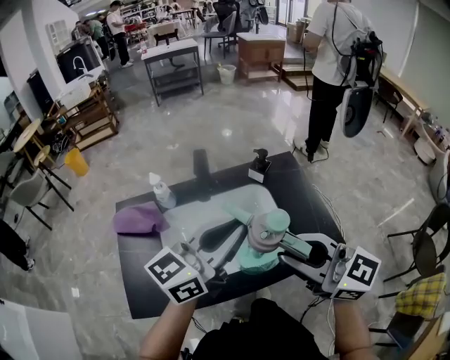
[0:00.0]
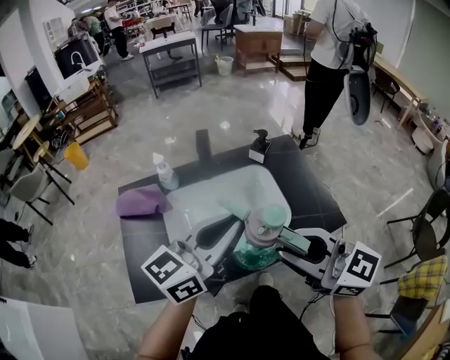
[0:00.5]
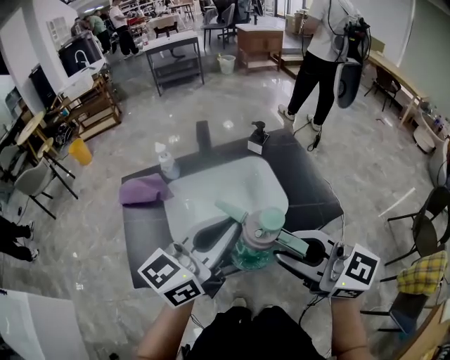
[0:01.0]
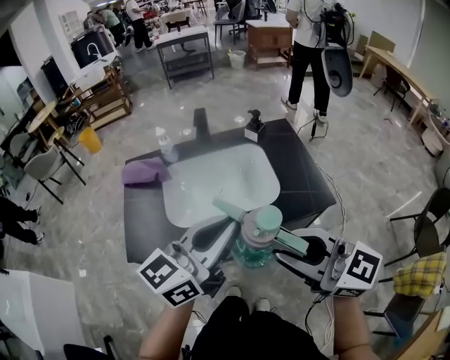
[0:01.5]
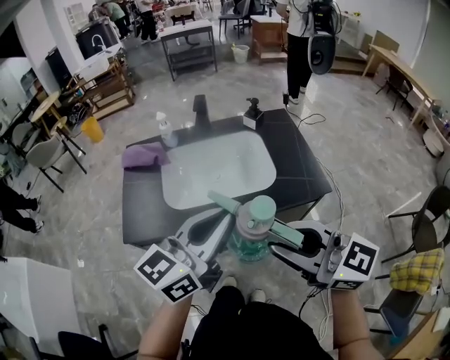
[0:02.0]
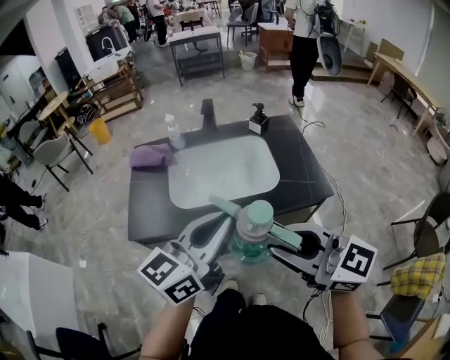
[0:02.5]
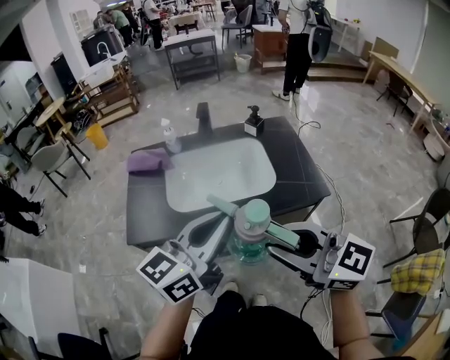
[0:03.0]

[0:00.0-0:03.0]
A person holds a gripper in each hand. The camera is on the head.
0:00.0 to 0:01.5: The two grippers go approximately 20 cm backward.
0:01.5 to 0:03.0: Both grippers move backward, some 5 cm.

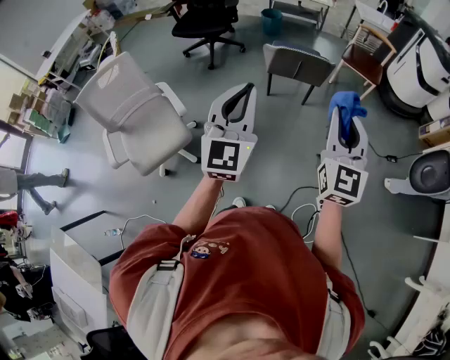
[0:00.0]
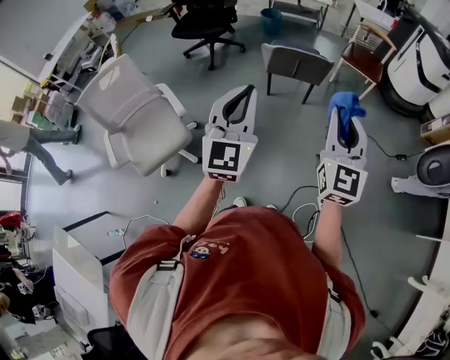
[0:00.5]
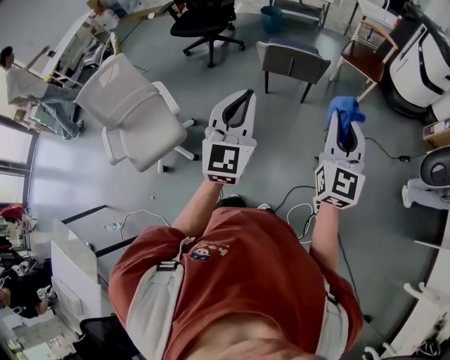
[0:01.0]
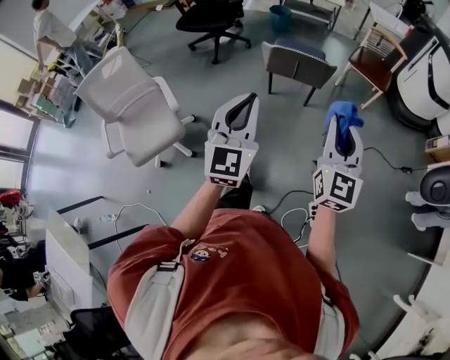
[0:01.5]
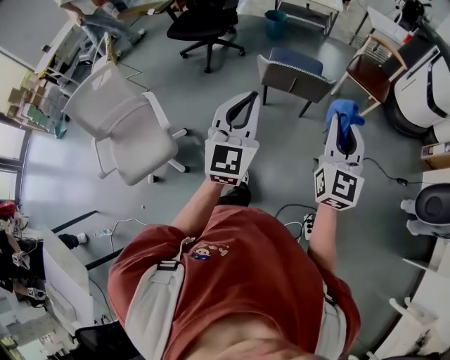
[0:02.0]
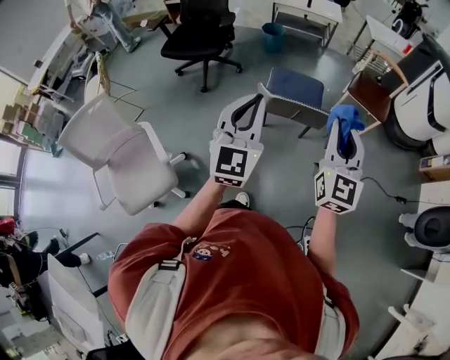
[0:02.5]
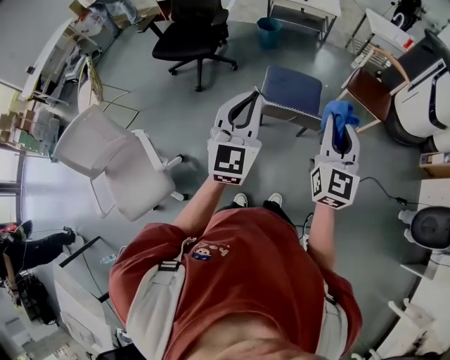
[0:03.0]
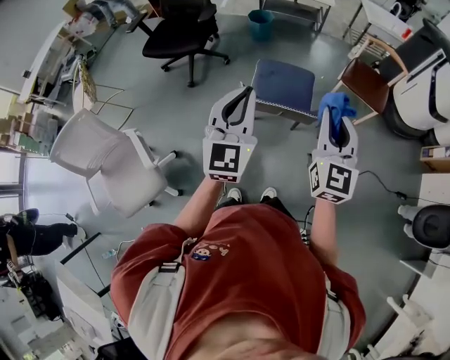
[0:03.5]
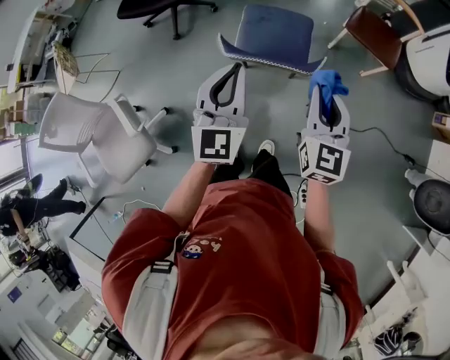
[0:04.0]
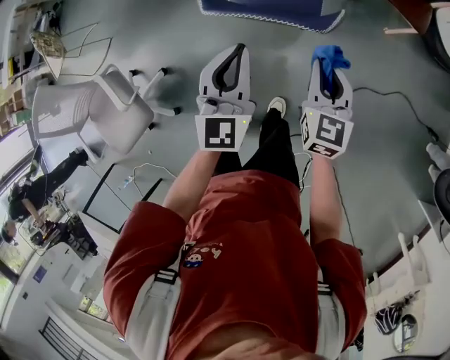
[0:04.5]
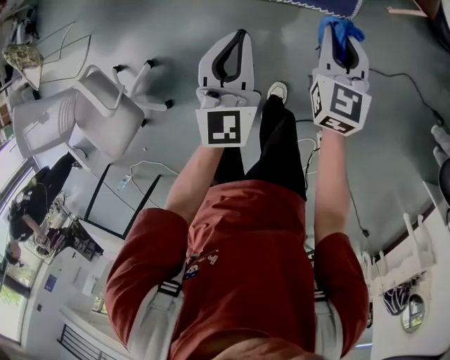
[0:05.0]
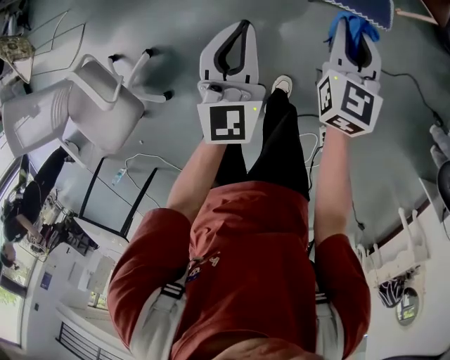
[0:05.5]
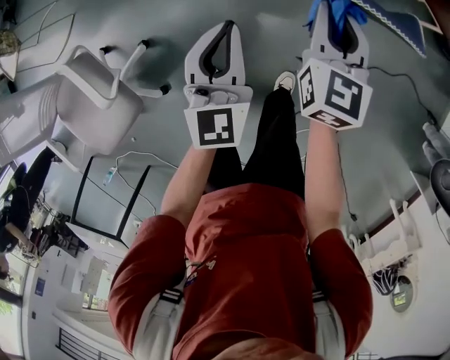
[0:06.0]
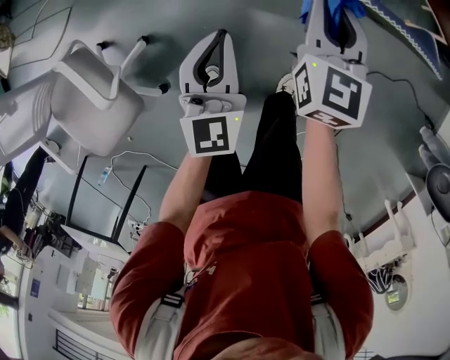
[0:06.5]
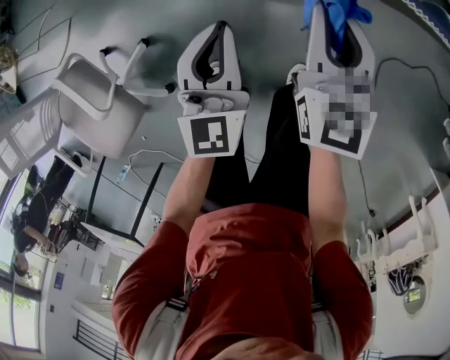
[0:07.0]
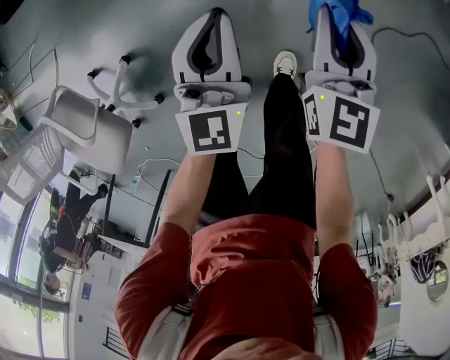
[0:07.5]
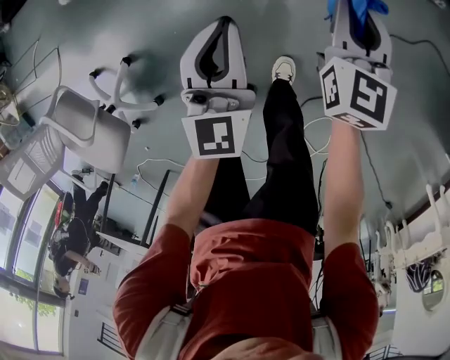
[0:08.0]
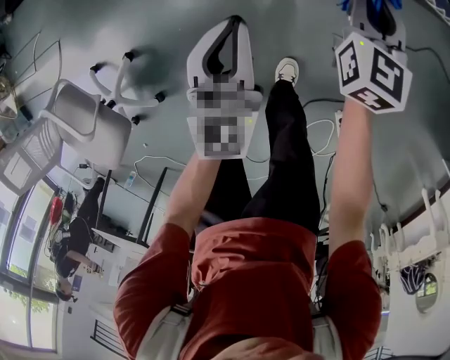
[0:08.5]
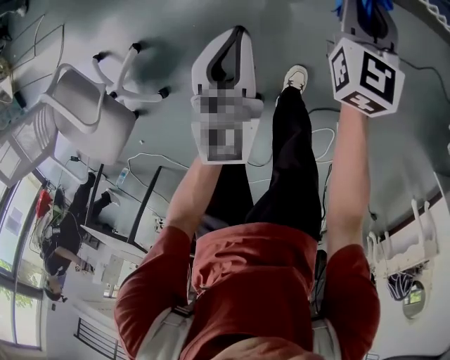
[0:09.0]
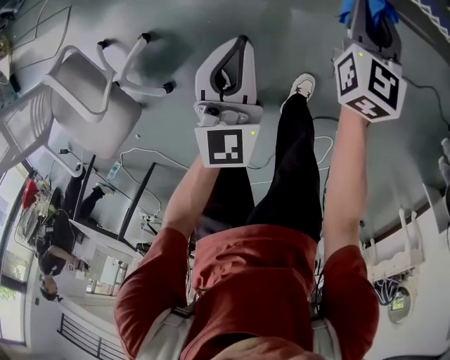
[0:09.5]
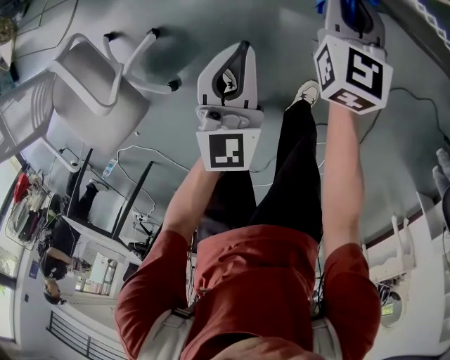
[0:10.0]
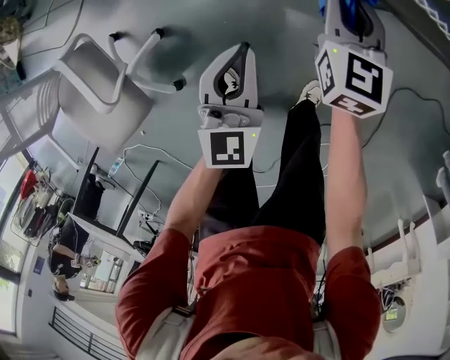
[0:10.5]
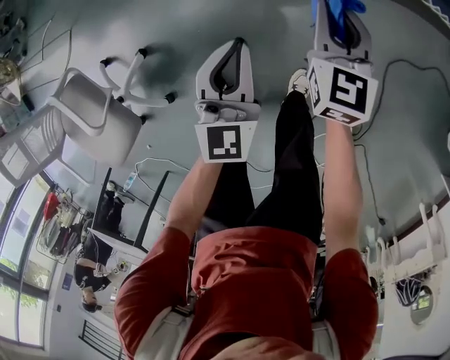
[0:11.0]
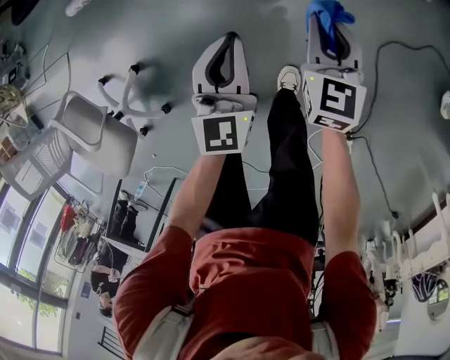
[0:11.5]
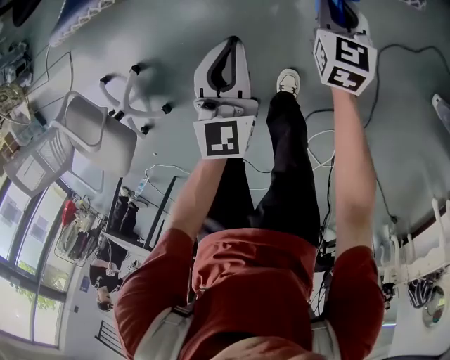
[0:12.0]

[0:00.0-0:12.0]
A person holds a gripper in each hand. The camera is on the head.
0:00.0 to 0:02.0: The two grippers go some 15 cm forward.
0:02.0 to 0:04.0: The left gripper shifts roughly 30 cm forward; the right gripper goes some 30 cm forward and downward.
0:04.0 to 0:06.0: Both grippers travel together downward and to the left, roughly 30 cm.
0:06.0 to 0:08.0: Both grippers travel together to the right and downward, about 25 cm.
0:08.0 to 0:10.0: The two grippers go approximately 25 cm to the left.
0:10.0 to 0:12.0: The right gripper heads to the right and downward, covering roughly 35 cm. The left gripper goes roughly 25 cm to the right.

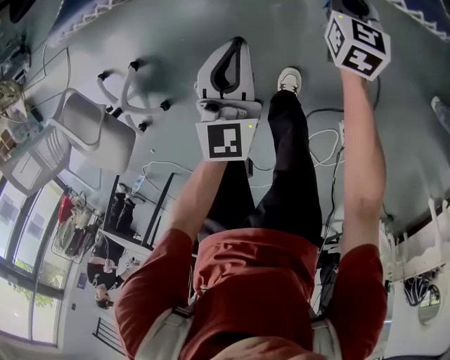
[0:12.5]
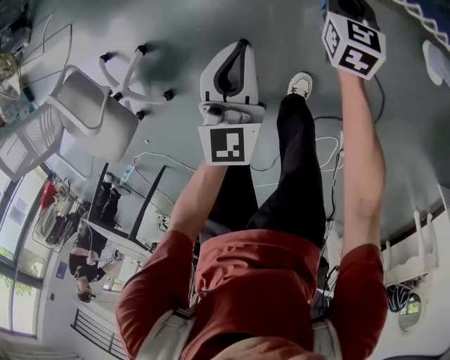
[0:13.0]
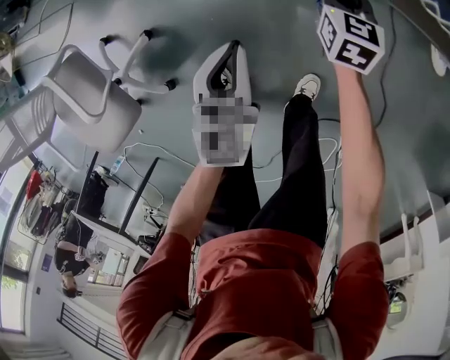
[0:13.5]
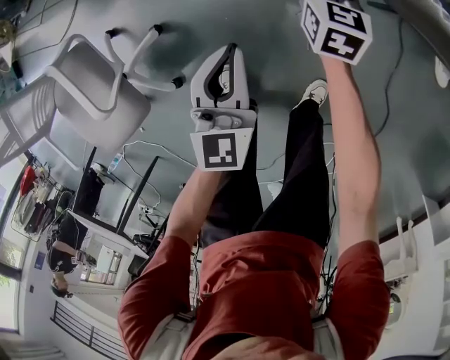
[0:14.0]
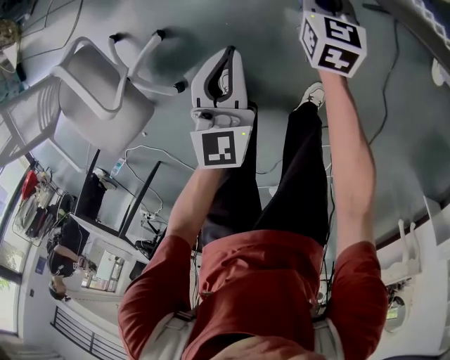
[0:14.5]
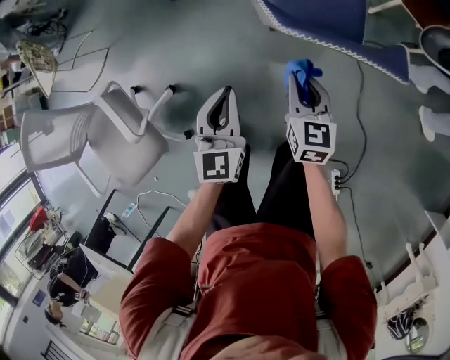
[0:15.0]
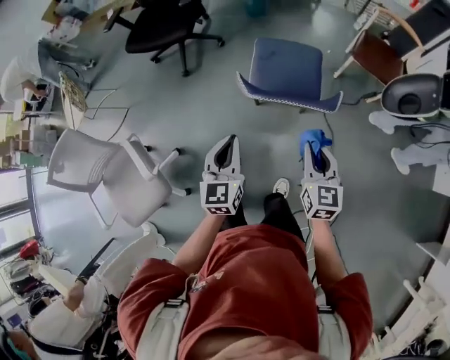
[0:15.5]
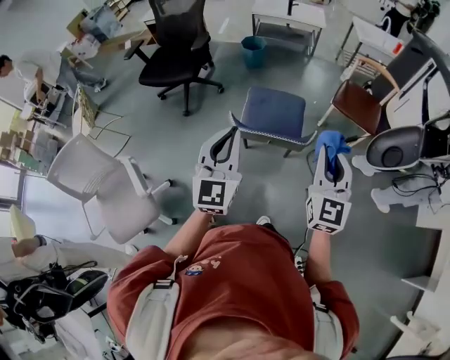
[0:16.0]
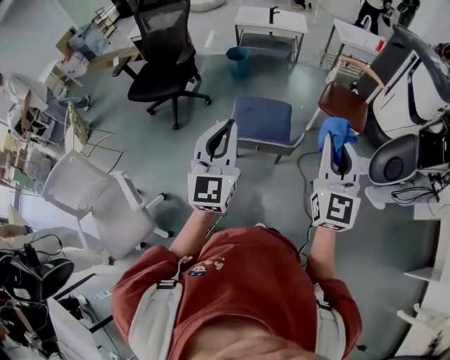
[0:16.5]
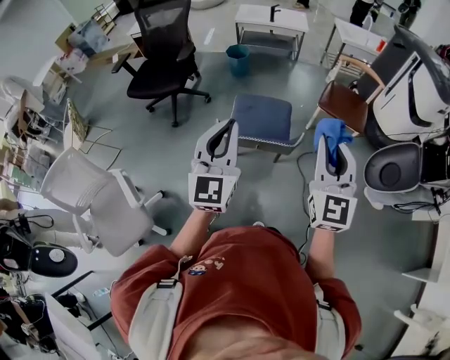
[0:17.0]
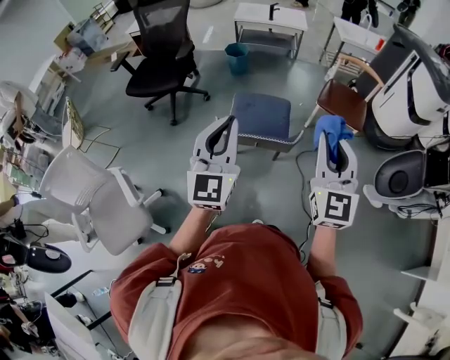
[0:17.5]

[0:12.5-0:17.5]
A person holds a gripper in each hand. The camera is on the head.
0:12.5 to 0:15.0: The grippers both shift to the left and upward by roughly 30 cm.
0:15.0 to 0:17.5: The grippers both shift upward and to the right by some 50 cm. The left gripper swivels about 30 degrees; the right gripper tilts its fingers some 30 degrees upward.

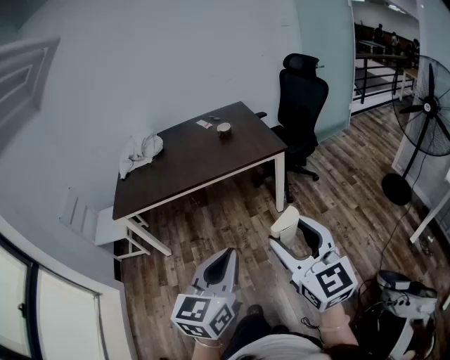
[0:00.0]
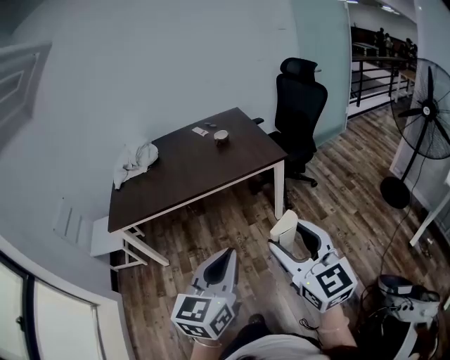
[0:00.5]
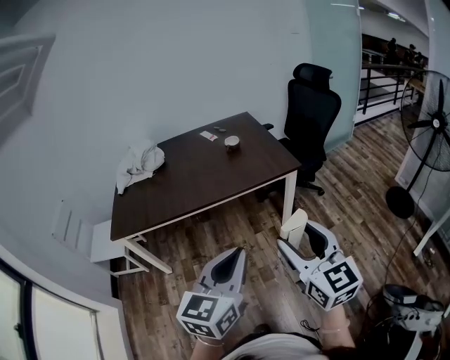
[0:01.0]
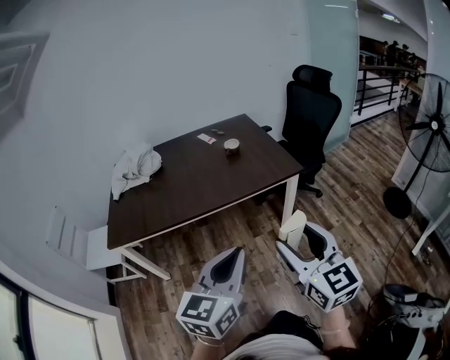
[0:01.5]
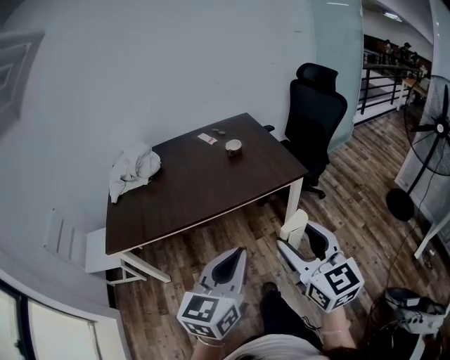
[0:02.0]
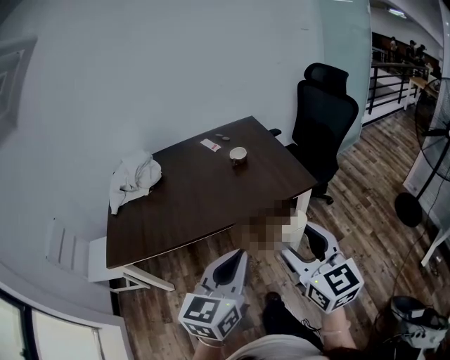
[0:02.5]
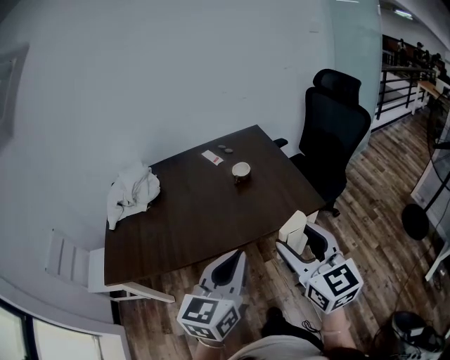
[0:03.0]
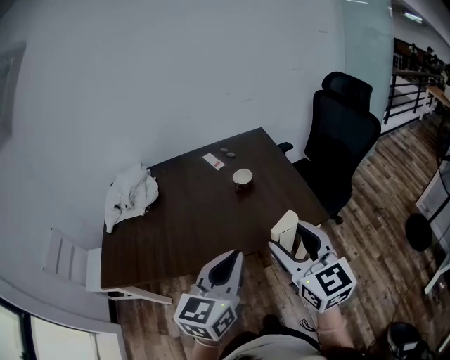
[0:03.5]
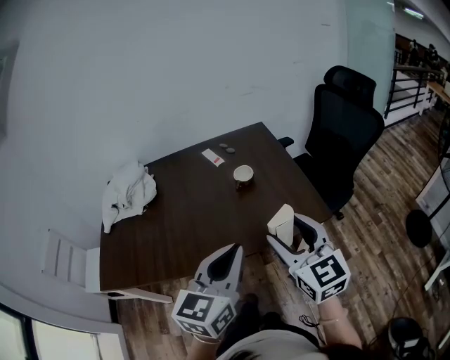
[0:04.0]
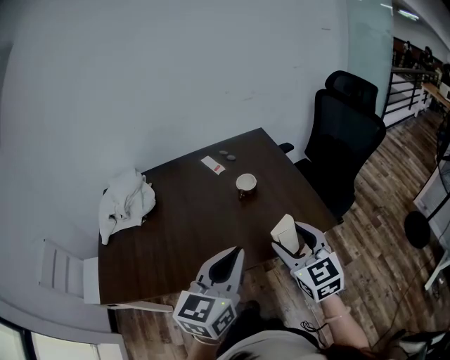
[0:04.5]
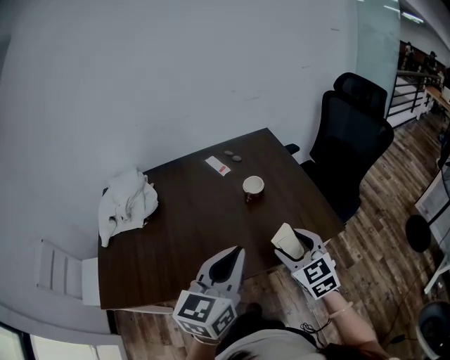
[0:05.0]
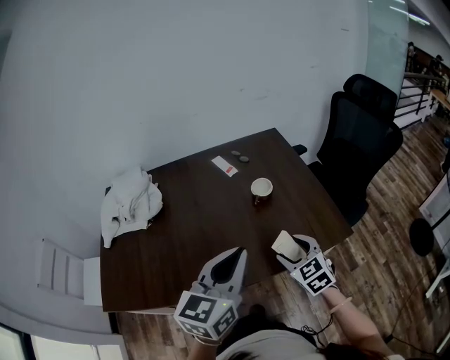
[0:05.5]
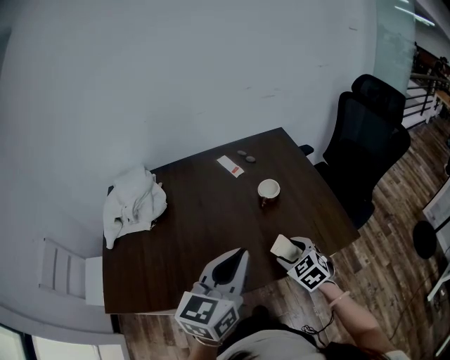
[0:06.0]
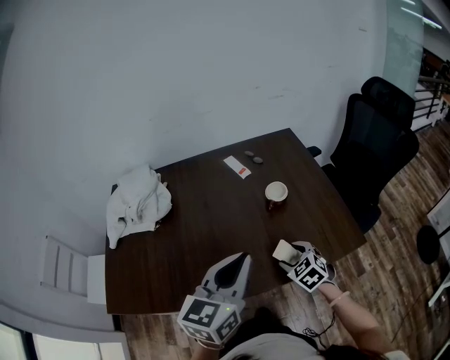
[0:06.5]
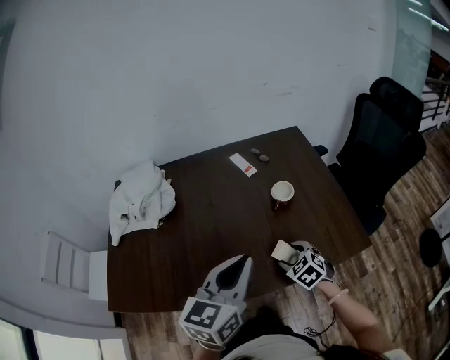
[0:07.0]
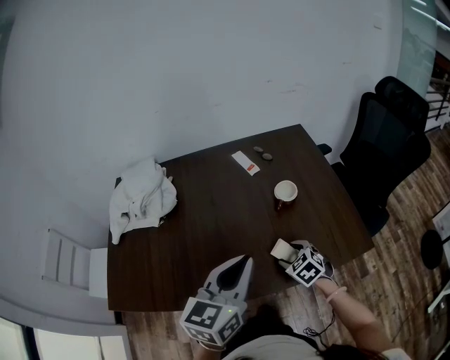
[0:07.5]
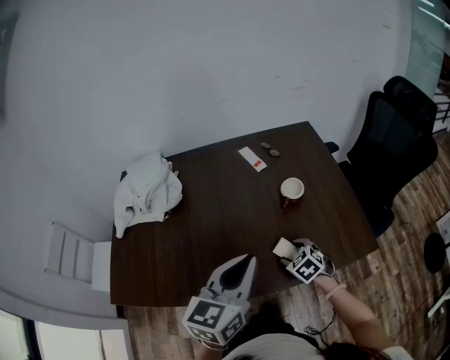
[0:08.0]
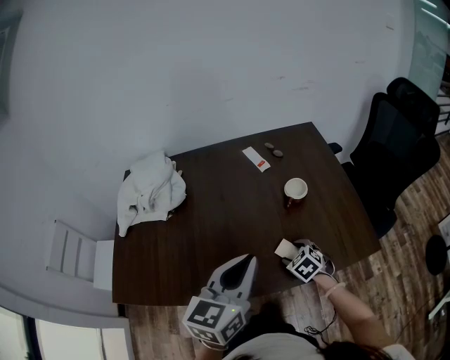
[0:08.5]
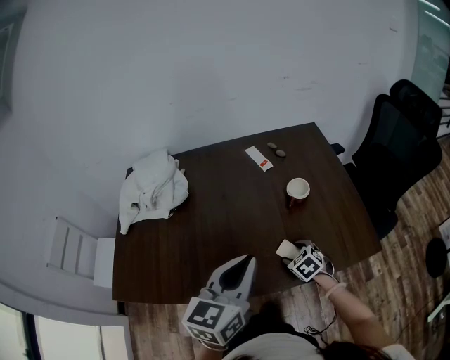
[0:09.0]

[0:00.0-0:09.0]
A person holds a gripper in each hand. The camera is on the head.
0:00.0 to 0:02.0: The two grippers go about 30 cm forward and to the left.
0:02.0 to 0:04.5: The two grippers travel together, forward, roughly 40 cm.
0:04.5 to 0:07.0: The left gripper heads forward and to the left, covering roughly 15 cm. Meanwhile the right gripper goes roughly 30 cm downward, forward and to the left, and tips its fingers downward by some 40 degrees.
0:07.0 to 0:09.0: The right gripper moves downward, approximately 5 cm.
